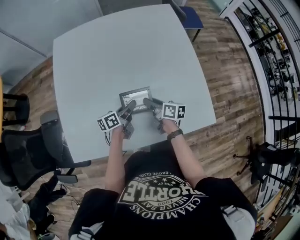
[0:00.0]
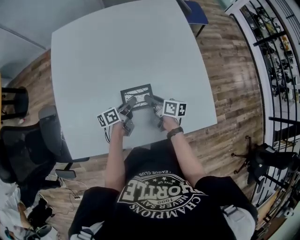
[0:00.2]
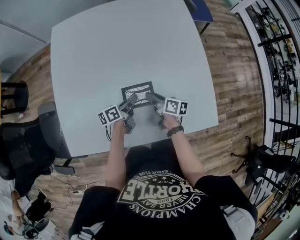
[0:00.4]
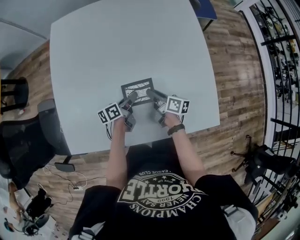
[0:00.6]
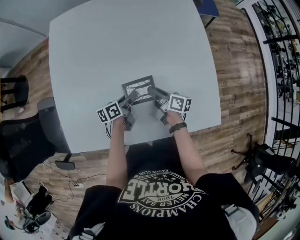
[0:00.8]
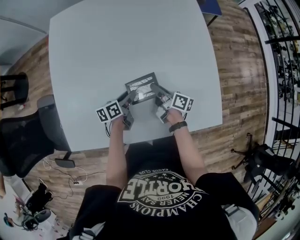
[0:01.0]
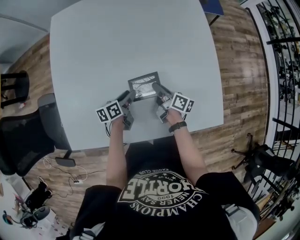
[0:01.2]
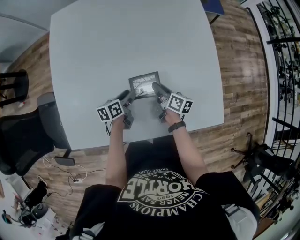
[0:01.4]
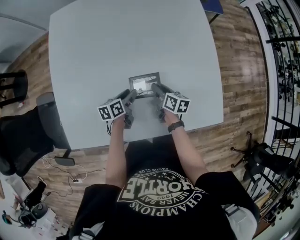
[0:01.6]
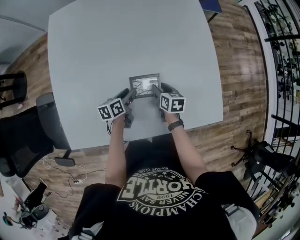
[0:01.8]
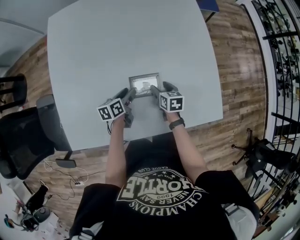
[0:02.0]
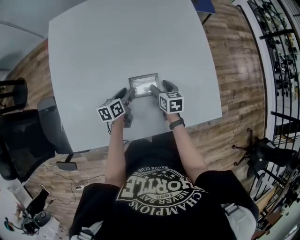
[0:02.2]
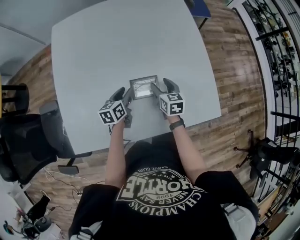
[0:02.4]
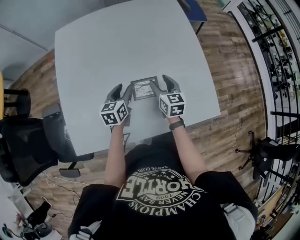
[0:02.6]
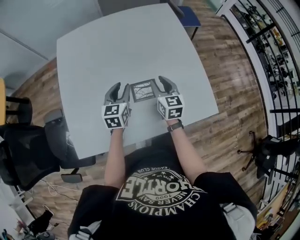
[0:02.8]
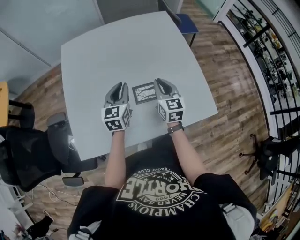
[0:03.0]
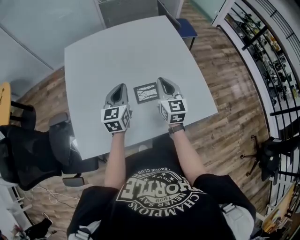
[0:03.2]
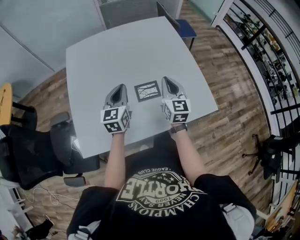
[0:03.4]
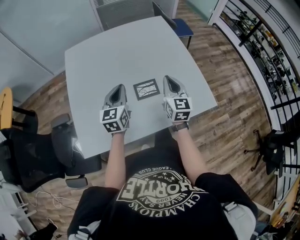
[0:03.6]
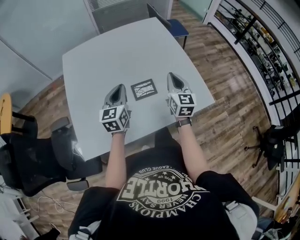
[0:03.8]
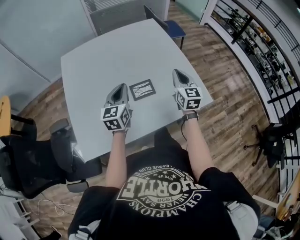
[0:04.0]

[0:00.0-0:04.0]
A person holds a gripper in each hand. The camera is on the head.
0:00.0 to 0:01.4: The right gripper is displaced downward and forward by roughly 10 cm, while the left gripper heads downward, covering roughly 10 cm.
0:01.4 to 0:02.6: Both grippers move upward, some 10 cm. The left gripper changes its angle by approximately 30 degrees. Meanwhile the right gripper twists approximately 40 degrees counterclockwise, seen from behind, and opens.
0:02.6 to 0:04.0: The right gripper is displaced upward, backward and to the right by approximately 20 cm, changes its angle by about 30 degrees, and closes up. Meanwhile the left gripper goes approximately 20 cm upward and backward, rotates some 20 degrees, and closes.

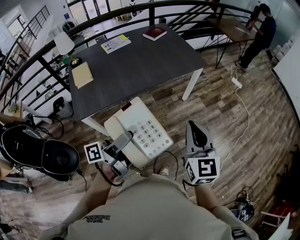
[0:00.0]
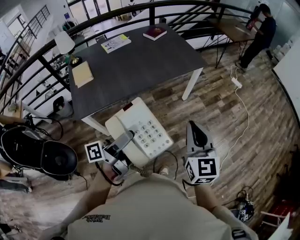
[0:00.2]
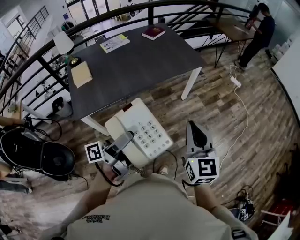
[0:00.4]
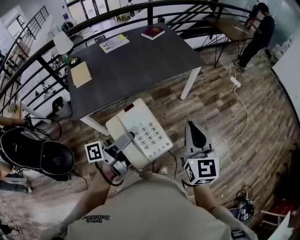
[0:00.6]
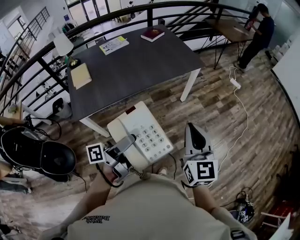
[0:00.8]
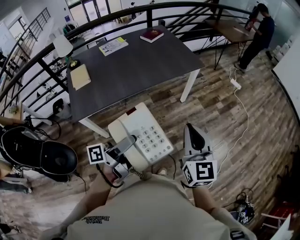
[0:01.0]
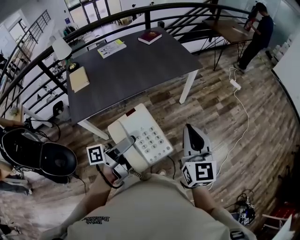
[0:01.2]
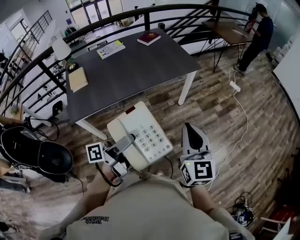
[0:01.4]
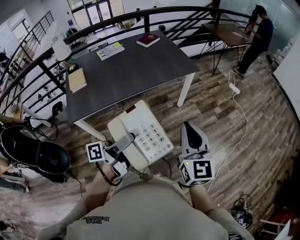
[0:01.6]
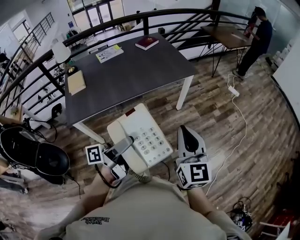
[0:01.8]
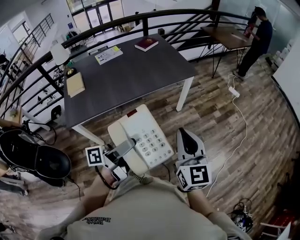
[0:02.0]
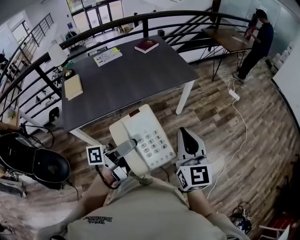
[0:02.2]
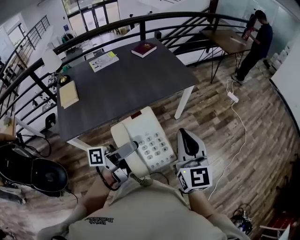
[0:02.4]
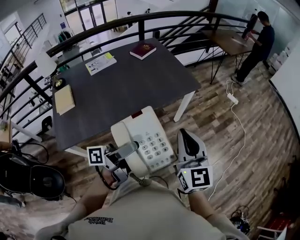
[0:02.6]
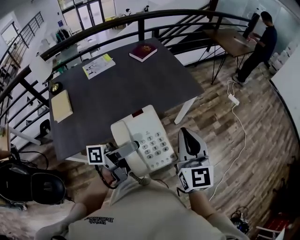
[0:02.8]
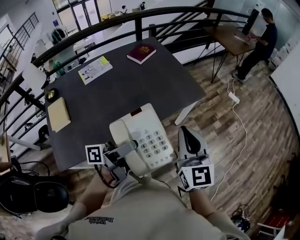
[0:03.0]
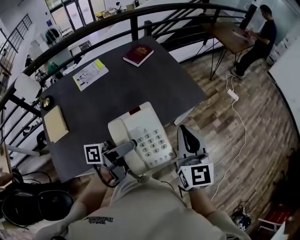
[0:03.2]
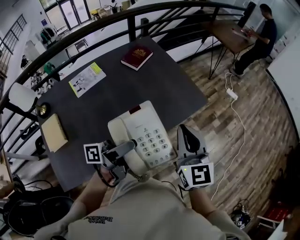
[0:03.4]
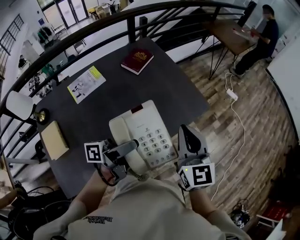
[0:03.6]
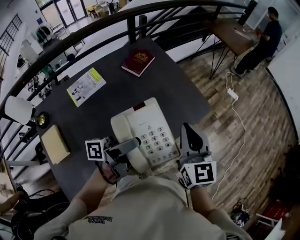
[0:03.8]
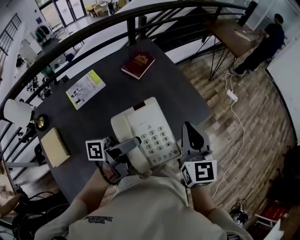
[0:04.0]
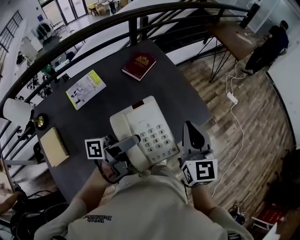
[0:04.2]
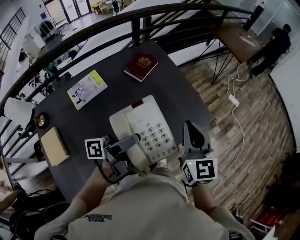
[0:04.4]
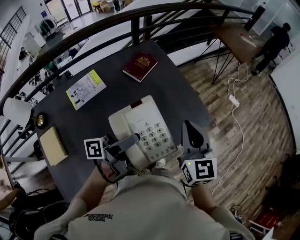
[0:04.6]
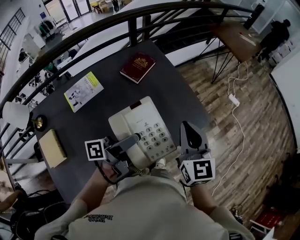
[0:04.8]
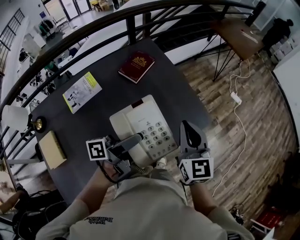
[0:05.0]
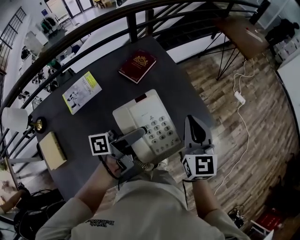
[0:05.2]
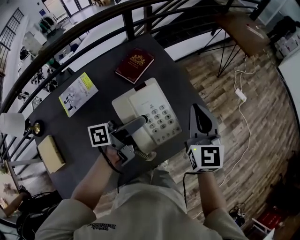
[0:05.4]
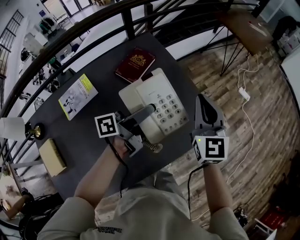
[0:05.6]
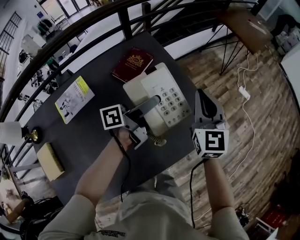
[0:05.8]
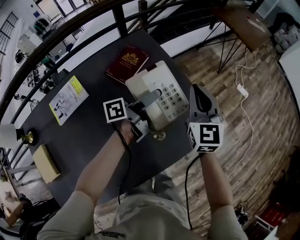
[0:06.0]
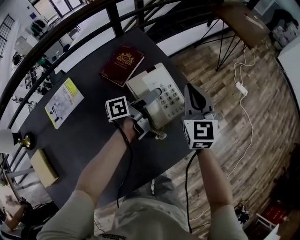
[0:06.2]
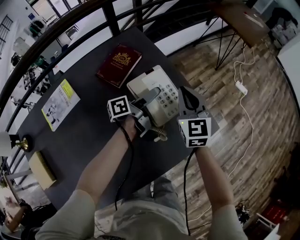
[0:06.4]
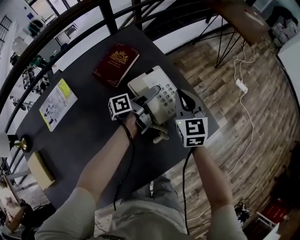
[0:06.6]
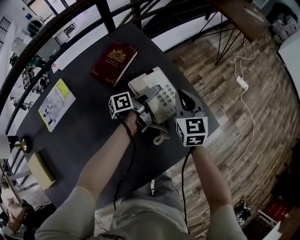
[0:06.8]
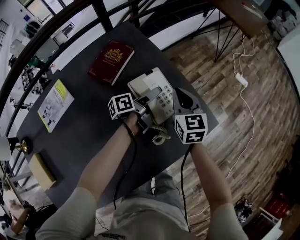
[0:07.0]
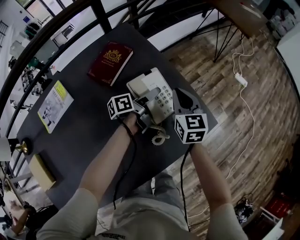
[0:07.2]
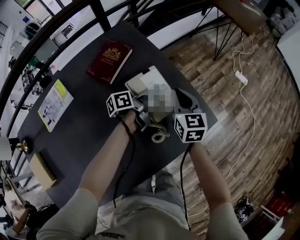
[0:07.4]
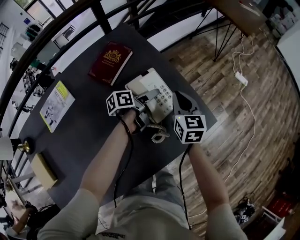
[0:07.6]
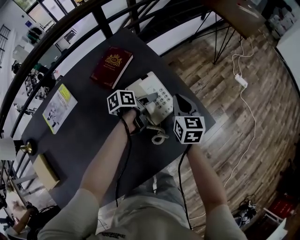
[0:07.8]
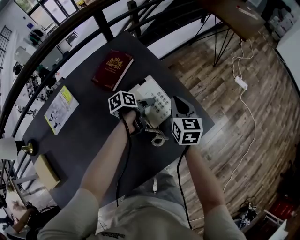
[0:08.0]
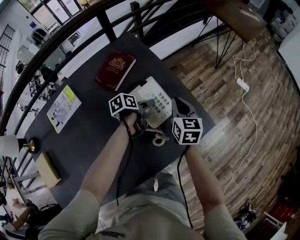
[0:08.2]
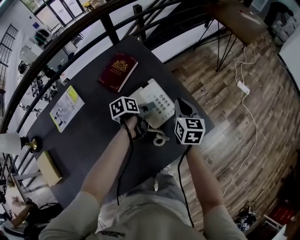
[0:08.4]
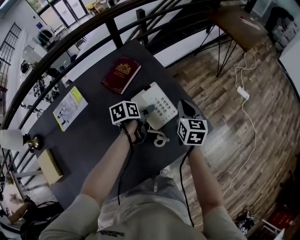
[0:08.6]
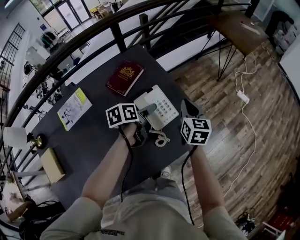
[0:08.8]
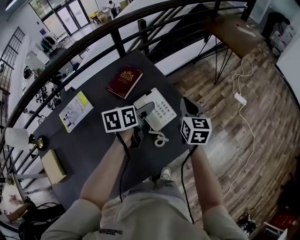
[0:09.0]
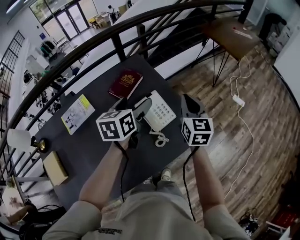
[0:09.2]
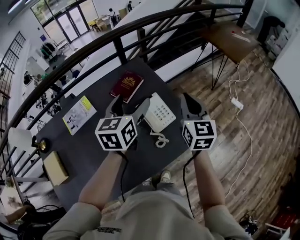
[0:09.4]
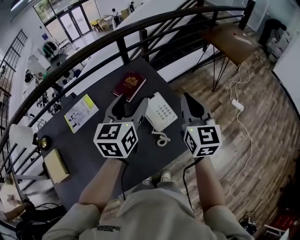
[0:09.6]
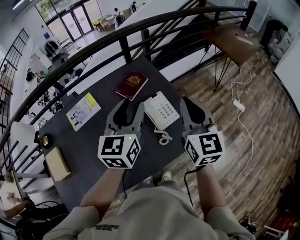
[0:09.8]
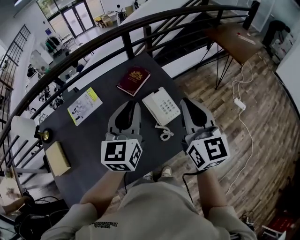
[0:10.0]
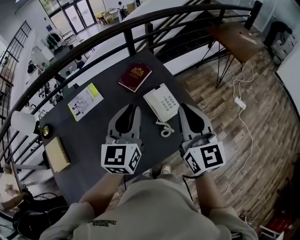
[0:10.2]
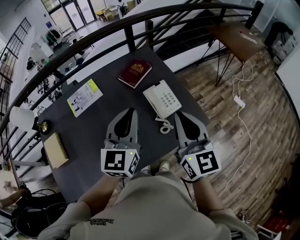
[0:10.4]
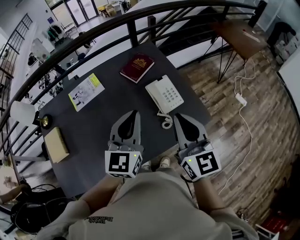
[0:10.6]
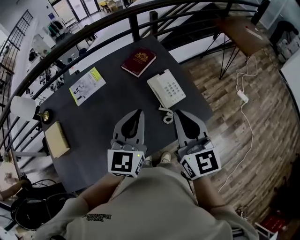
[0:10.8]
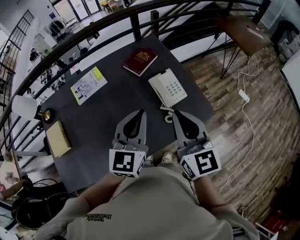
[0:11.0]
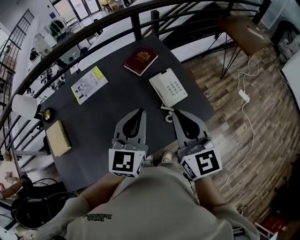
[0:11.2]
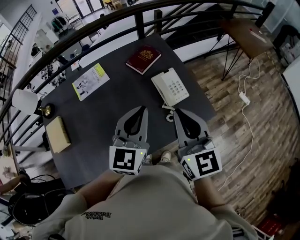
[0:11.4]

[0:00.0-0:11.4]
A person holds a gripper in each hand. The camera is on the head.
0:00.0 to 0:01.4: The grippers both shift to the right by roughly 10 cm.
0:01.4 to 0:02.8: The right gripper heads forward and to the left, covering about 25 cm. Meanwhile the left gripper is displaced forward by approximately 25 cm.
0:02.8 to 0:04.2: Both grippers move forward and to the left, roughly 35 cm.
0:04.2 to 0:05.6: Both grippers move forward, about 25 cm.
0:05.6 to 0:07.2: The grippers both shift downward and forward by about 25 cm. The left gripper rotates some 20 degrees, while the right gripper swivels approximately 20 degrees.
0:07.2 to 0:08.6: The left gripper moves backward, roughly 5 cm, and points its fingers about 30 degrees further downward.
0:08.6 to 0:10.0: The right gripper is displaced upward and backward by some 35 cm, and rotates some 30 degrees. Meanwhile the left gripper shifts some 35 cm upward, angles its fingers upward, by about 40 degrees, and closes up.
0:10.0 to 0:11.4: The left gripper travels backward by some 10 cm. The right gripper travels backward and to the left by some 10 cm.

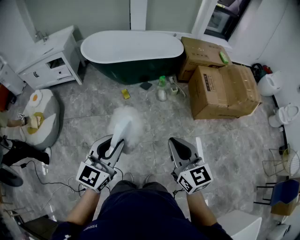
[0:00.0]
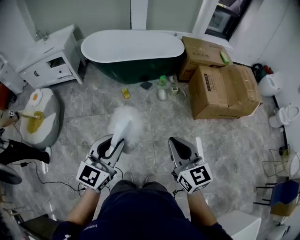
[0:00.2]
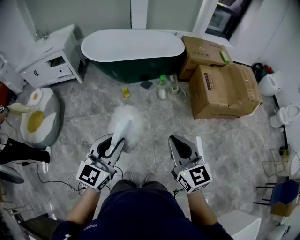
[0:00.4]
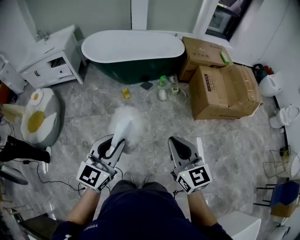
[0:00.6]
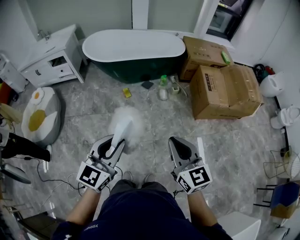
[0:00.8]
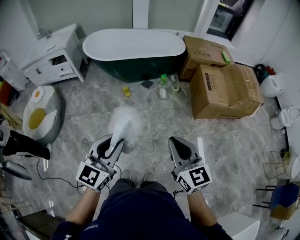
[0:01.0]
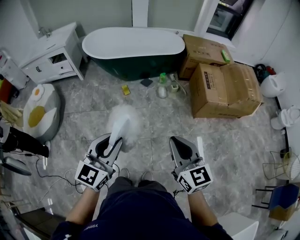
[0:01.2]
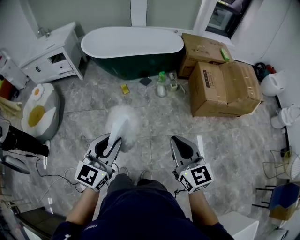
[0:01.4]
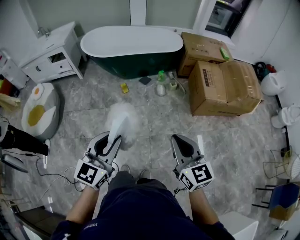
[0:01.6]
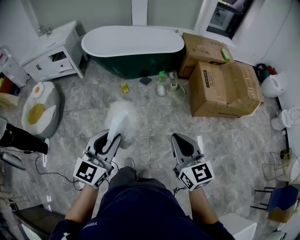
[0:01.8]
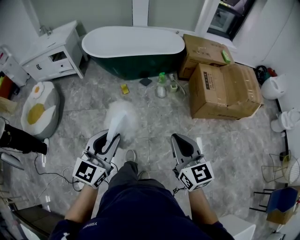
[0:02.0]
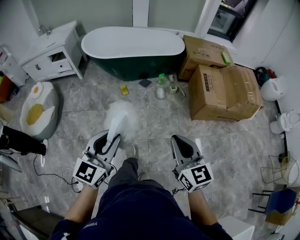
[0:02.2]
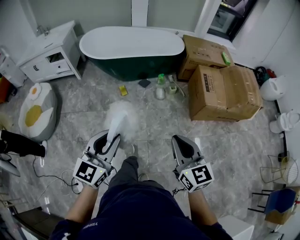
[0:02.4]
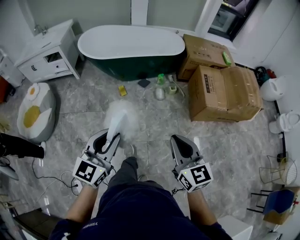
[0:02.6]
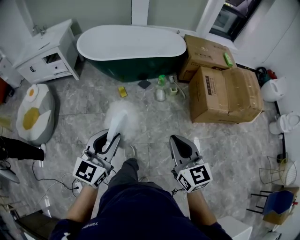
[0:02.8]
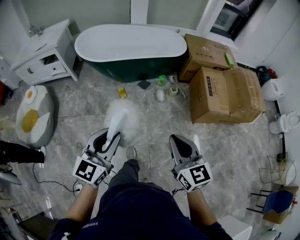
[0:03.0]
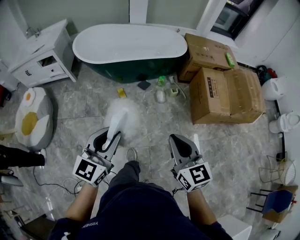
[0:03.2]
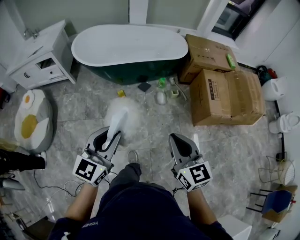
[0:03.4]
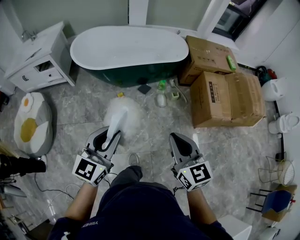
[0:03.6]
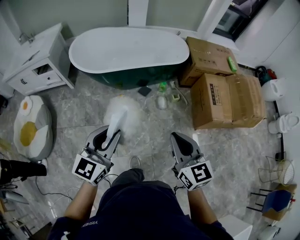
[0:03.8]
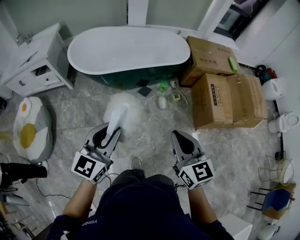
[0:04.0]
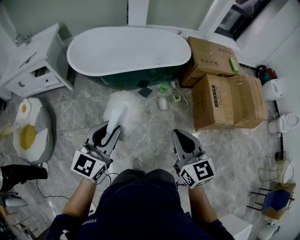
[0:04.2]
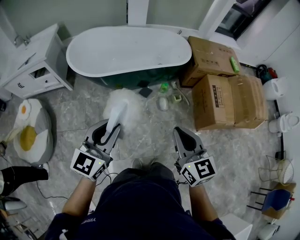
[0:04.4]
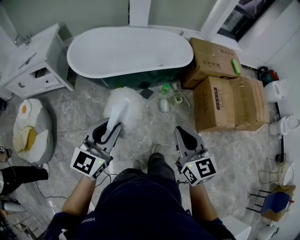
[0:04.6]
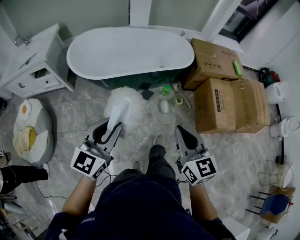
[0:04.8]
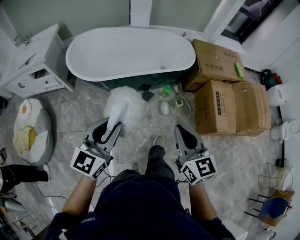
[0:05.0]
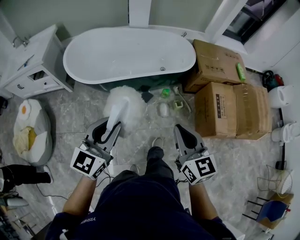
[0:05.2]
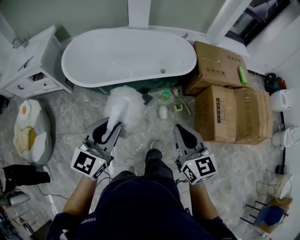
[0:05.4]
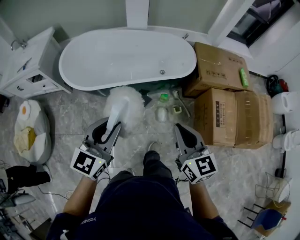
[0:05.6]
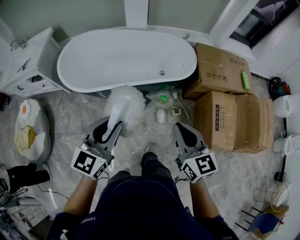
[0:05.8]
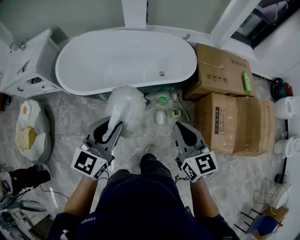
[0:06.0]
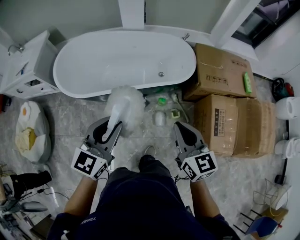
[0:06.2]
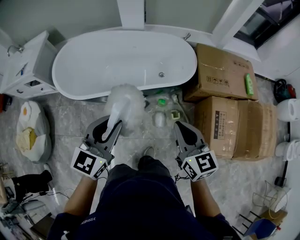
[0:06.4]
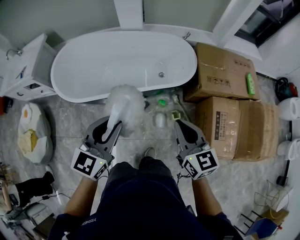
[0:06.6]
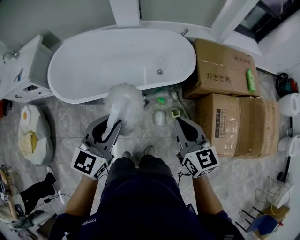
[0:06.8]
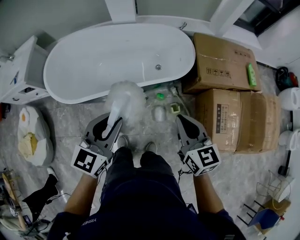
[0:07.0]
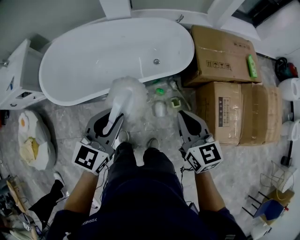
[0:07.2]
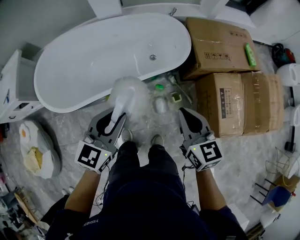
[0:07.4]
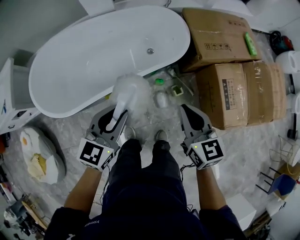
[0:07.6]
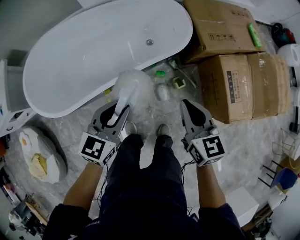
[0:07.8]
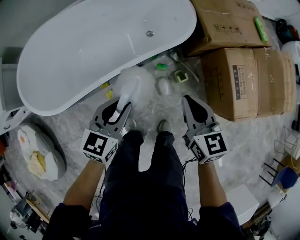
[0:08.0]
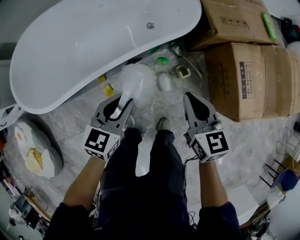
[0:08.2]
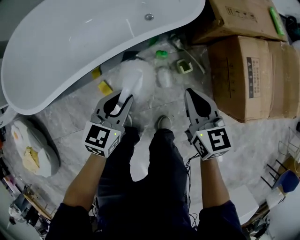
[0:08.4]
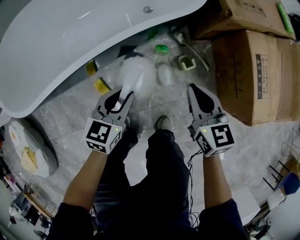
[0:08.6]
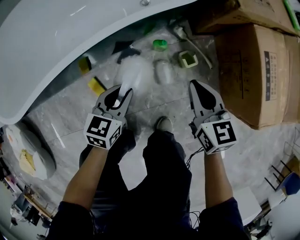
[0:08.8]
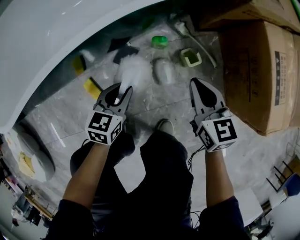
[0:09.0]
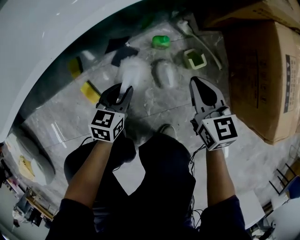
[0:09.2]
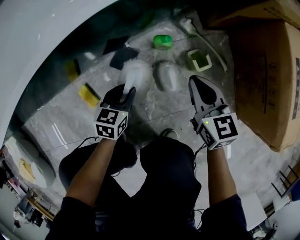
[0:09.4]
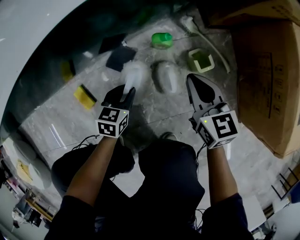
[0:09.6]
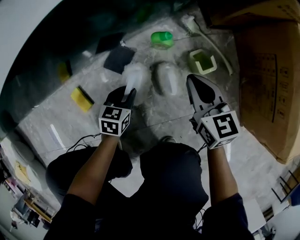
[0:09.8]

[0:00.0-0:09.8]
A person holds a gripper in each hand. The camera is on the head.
0:00.0 to 0:01.4: The two grippers go roughly 5 cm to the right.
0:01.4 to 0:02.8: The grippers both shift forward by roughly 10 cm.
0:02.8 to 0:04.2: The left gripper moves forward, some 25 cm. The right gripper goes about 25 cm forward and to the left.
0:04.2 to 0:05.6: The two grippers go roughly 20 cm forward.
0:05.6 to 0:07.0: The grippers both shift forward and to the right by about 20 cm.
0:07.0 to 0:08.4: Both grippers travel together downward, roughly 30 cm. The left gripper rotates some 20 degrees.
0:08.4 to 0:09.8: Both grippers move downward, approximately 40 cm.
